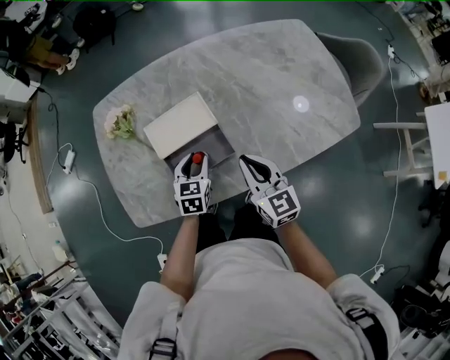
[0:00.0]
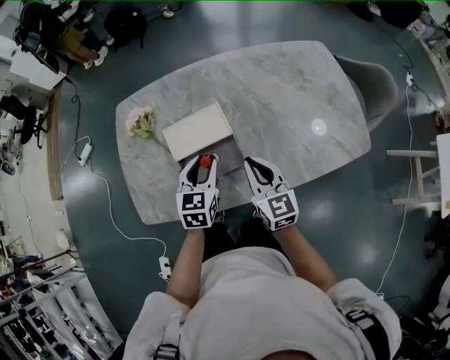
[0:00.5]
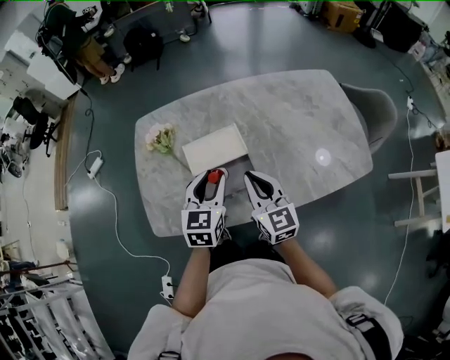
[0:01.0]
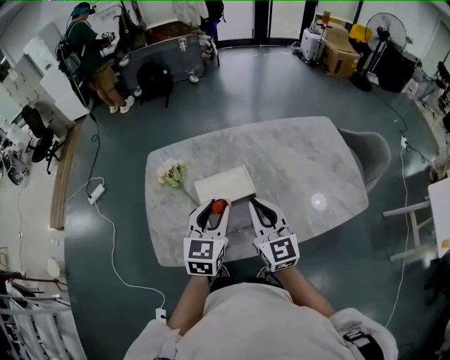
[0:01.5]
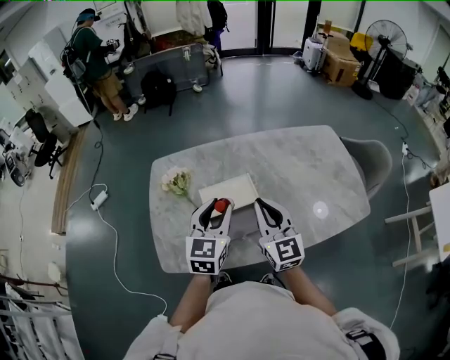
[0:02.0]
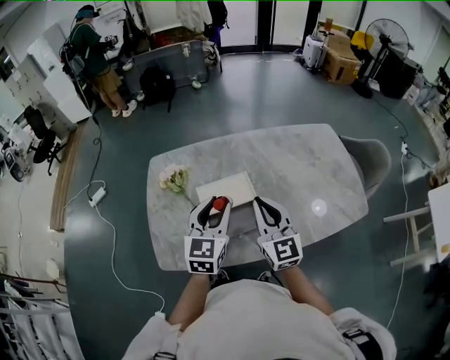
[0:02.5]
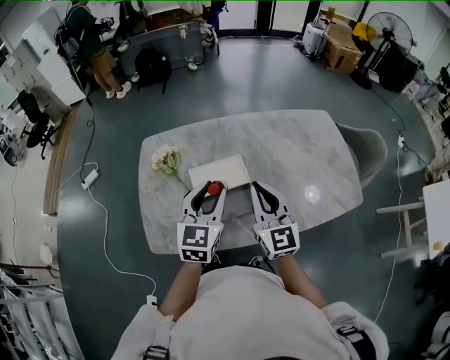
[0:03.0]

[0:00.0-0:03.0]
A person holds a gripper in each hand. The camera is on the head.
0:00.0 to 0:01.5: The right gripper is displaced upward and to the left by approximately 15 cm. The left gripper shifts some 25 cm upward, and swivels approximately 20 degrees.
0:01.5 to 0:03.0: There are only small adjustments of the grippers.

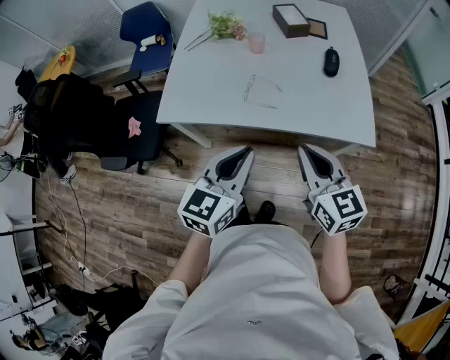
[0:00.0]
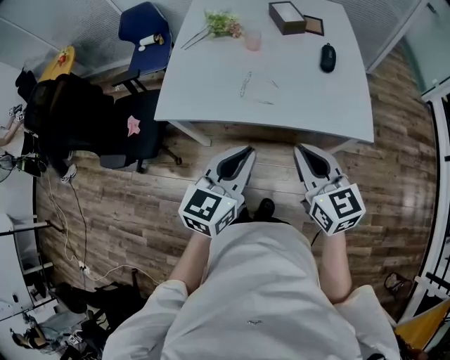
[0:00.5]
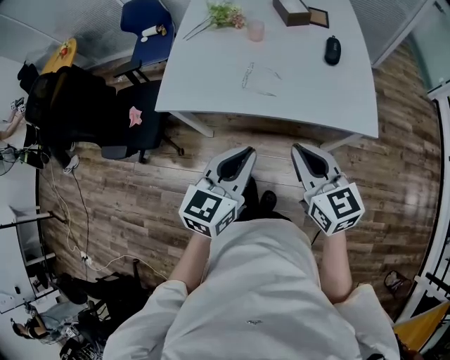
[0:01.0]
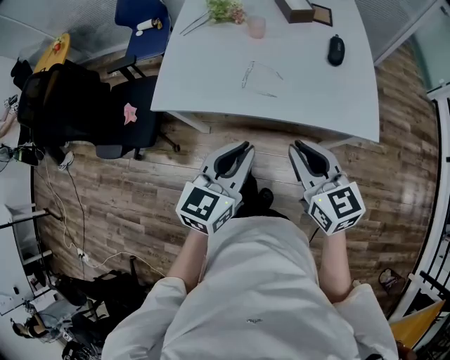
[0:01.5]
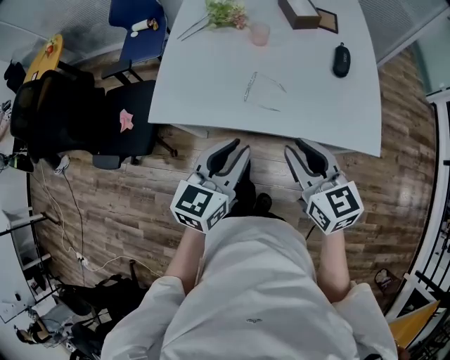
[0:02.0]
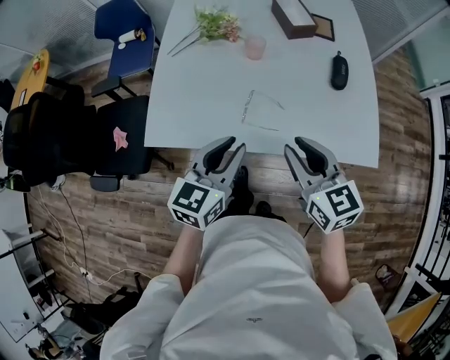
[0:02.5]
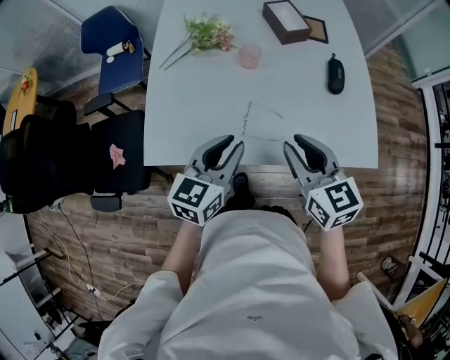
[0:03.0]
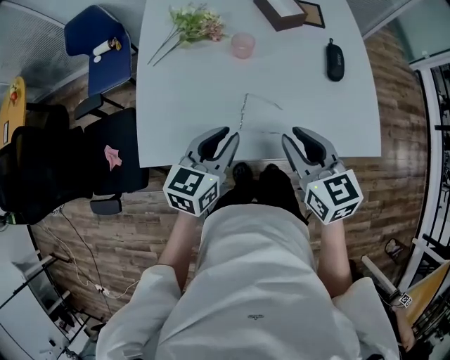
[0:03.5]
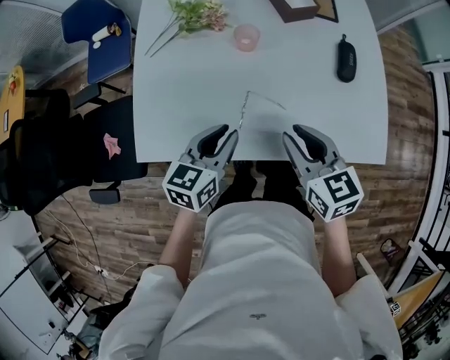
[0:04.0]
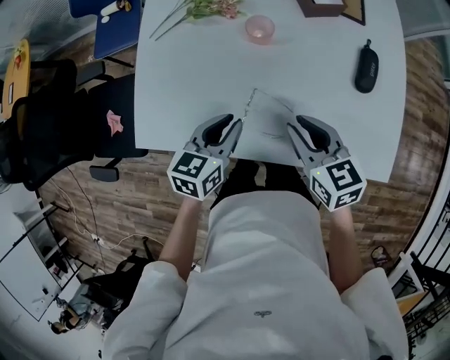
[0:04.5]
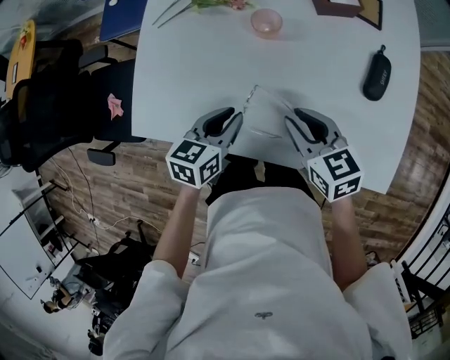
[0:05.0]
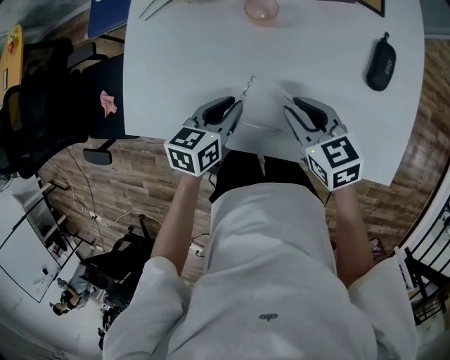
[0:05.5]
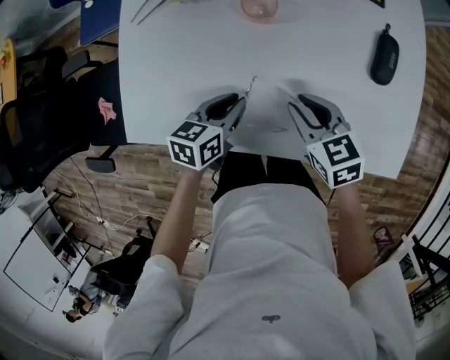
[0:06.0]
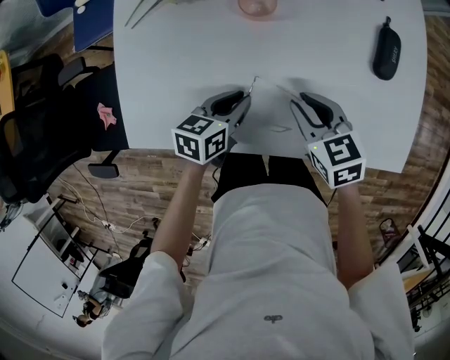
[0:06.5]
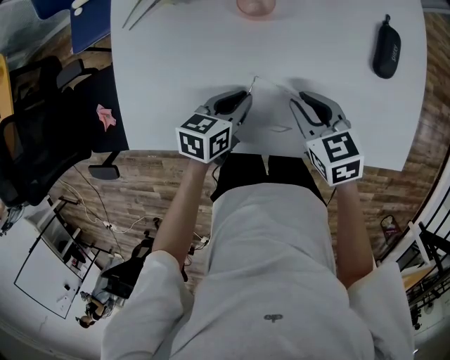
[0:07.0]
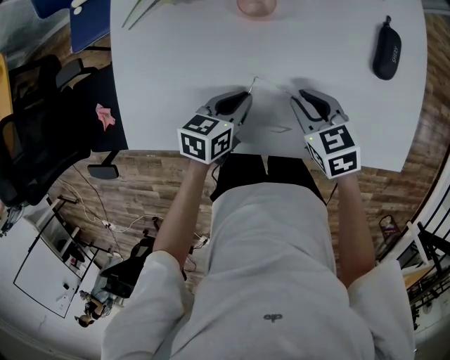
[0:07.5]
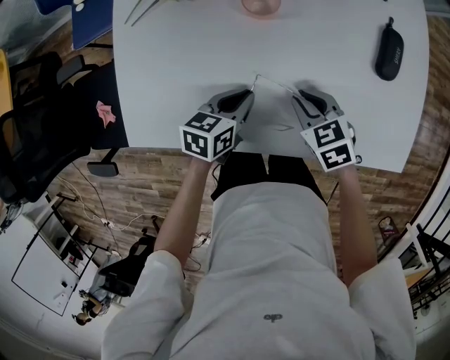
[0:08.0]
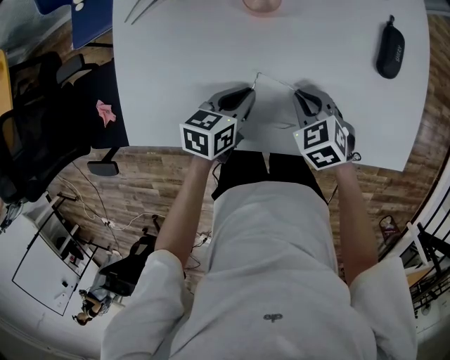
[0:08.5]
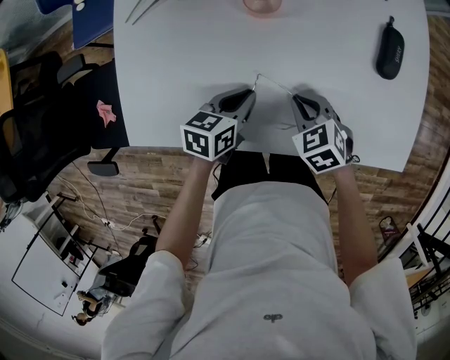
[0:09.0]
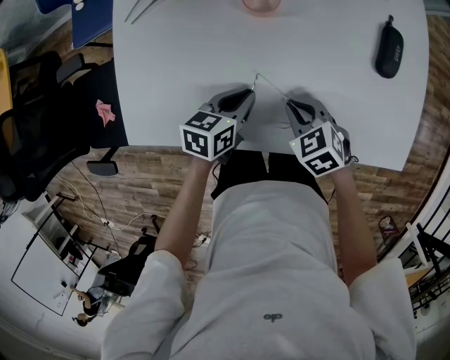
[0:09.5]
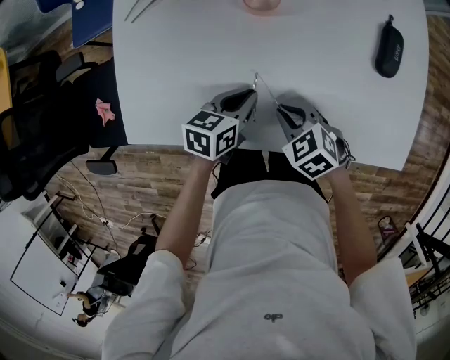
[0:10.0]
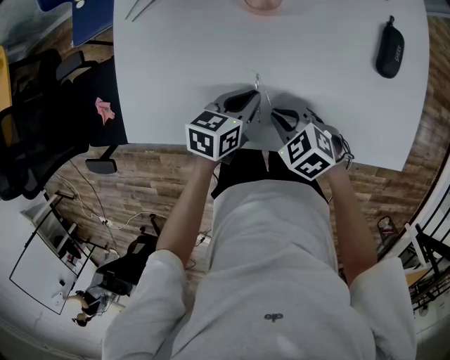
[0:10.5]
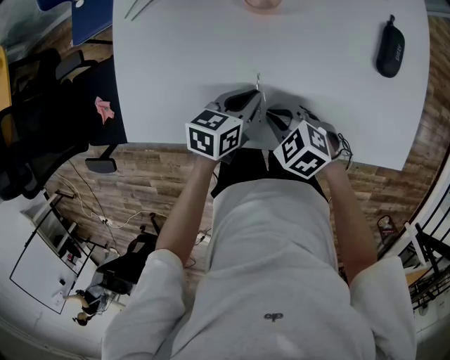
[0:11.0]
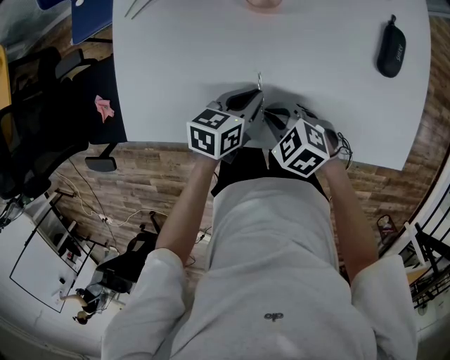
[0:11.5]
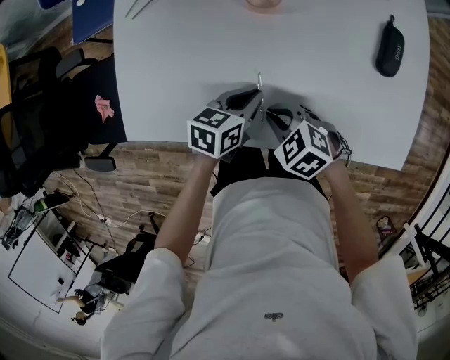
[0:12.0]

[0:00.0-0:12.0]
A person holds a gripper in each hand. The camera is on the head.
0:00.0 to 0:02.0: Both grippers move forward, approximately 5 cm. The right gripper opens its fingers.
0:02.0 to 0:04.0: The left gripper heads forward and downward, covering approximately 20 cm, while the right gripper travels forward by roughly 15 cm.
0:04.0 to 0:06.0: Both grippers move downward and forward, some 15 cm.
0:06.0 to 0:08.0: The right gripper moves downward, some 5 cm.
0:08.0 to 0:10.0: The right gripper heads backward, covering roughly 5 cm.
0:10.0 to 0:12.0: The grippers move only a little.

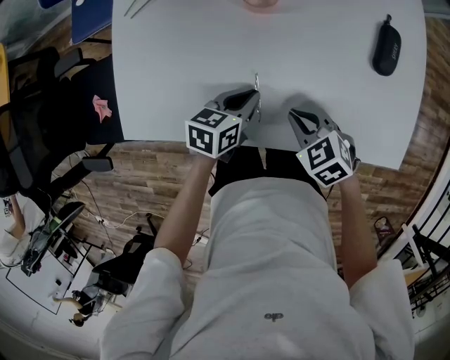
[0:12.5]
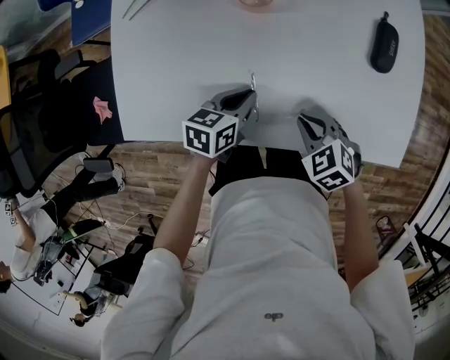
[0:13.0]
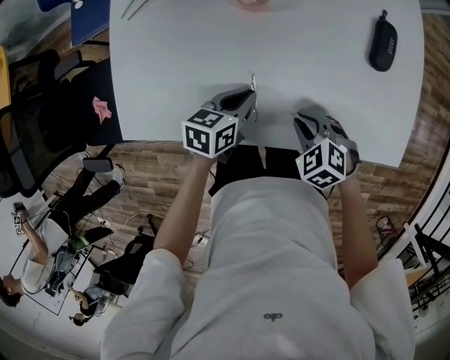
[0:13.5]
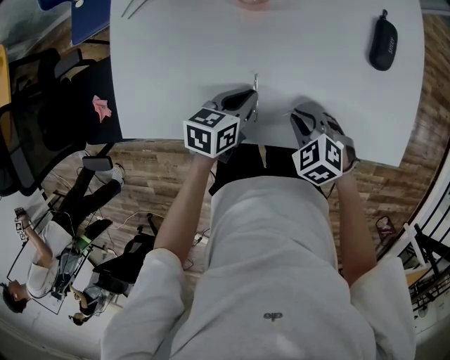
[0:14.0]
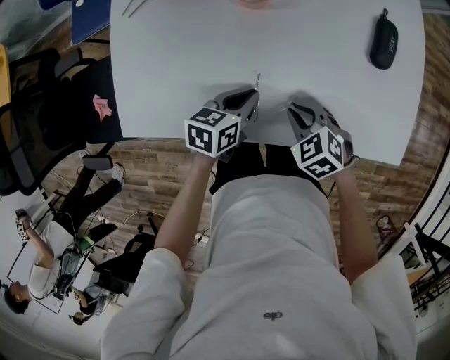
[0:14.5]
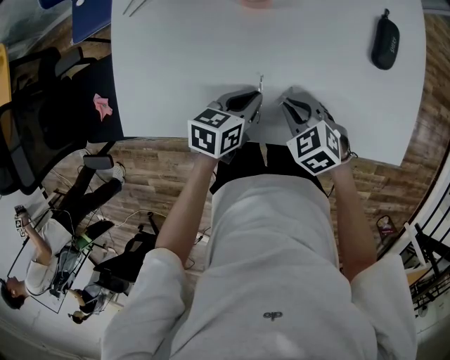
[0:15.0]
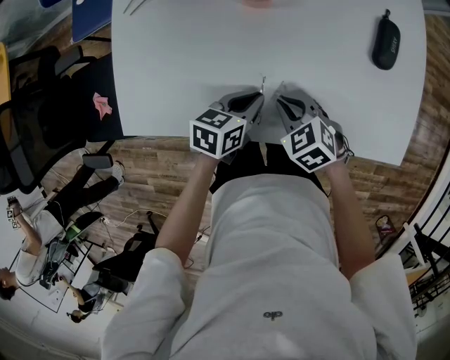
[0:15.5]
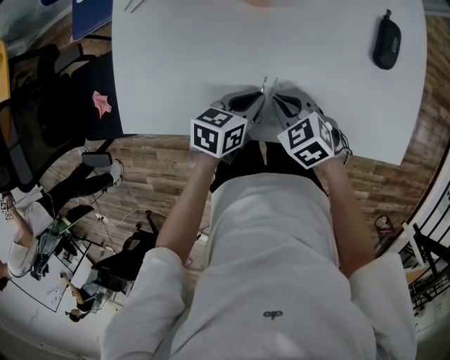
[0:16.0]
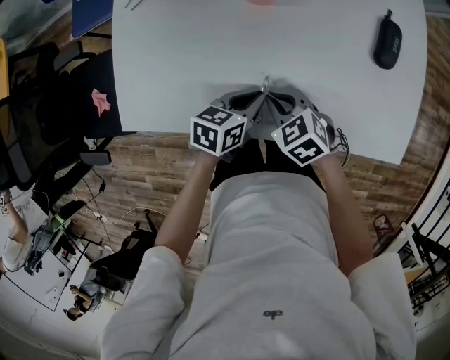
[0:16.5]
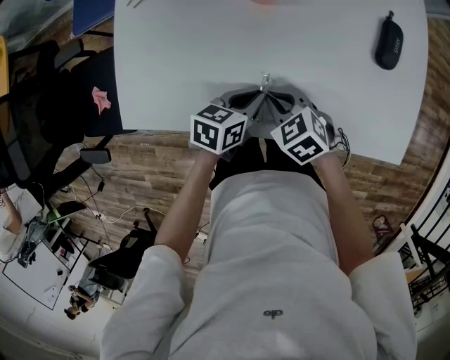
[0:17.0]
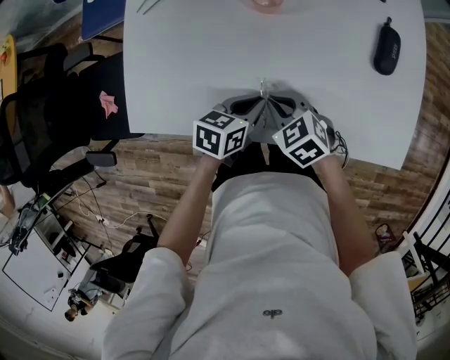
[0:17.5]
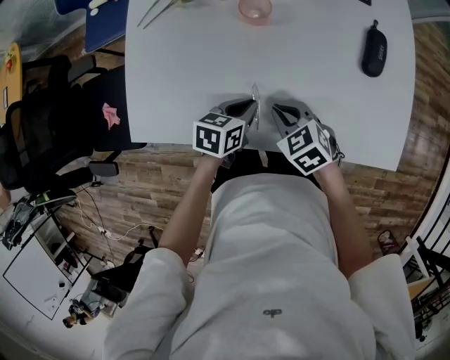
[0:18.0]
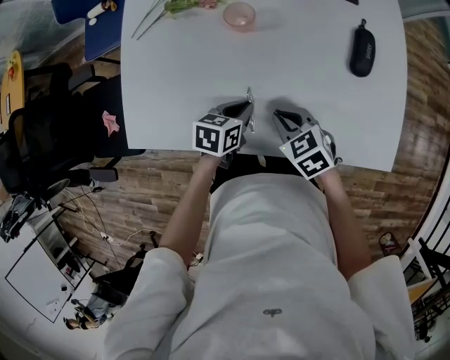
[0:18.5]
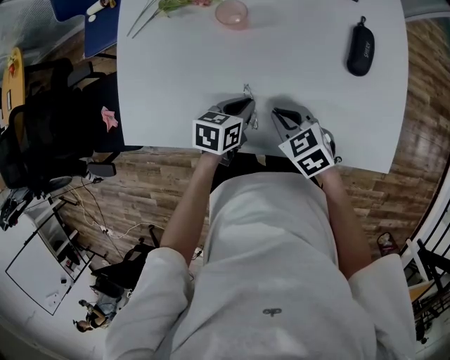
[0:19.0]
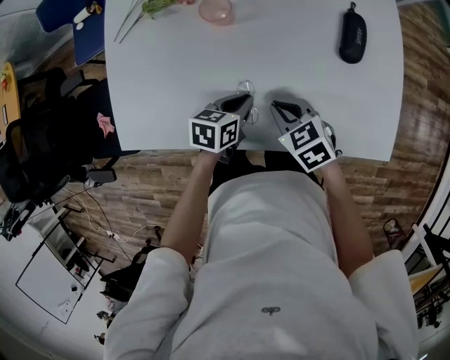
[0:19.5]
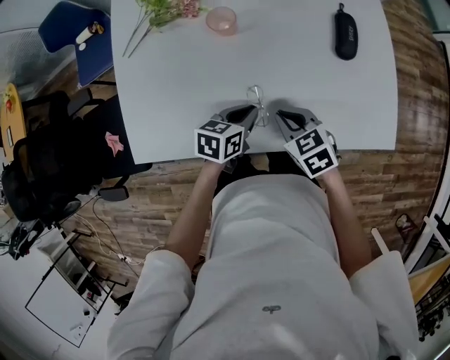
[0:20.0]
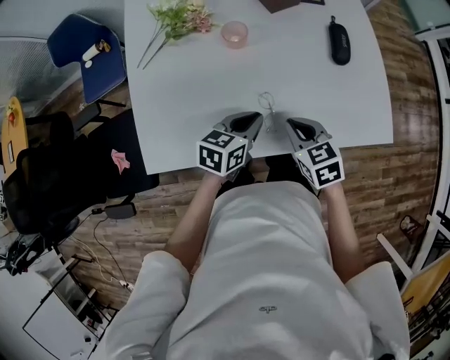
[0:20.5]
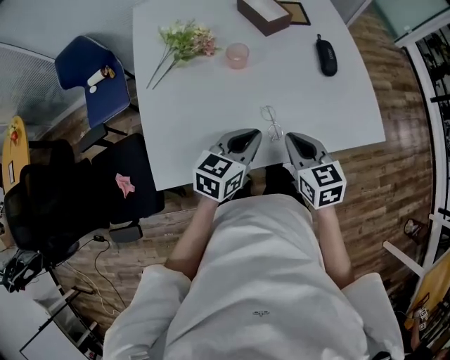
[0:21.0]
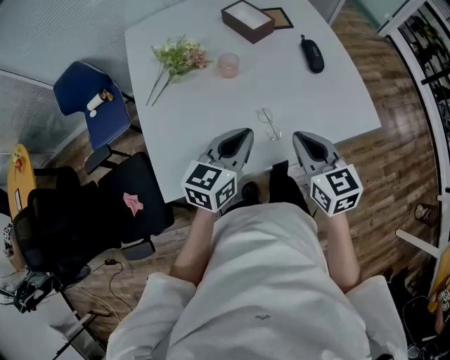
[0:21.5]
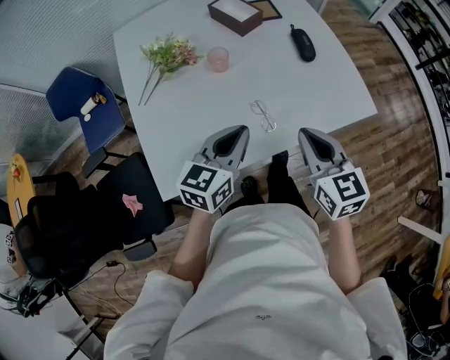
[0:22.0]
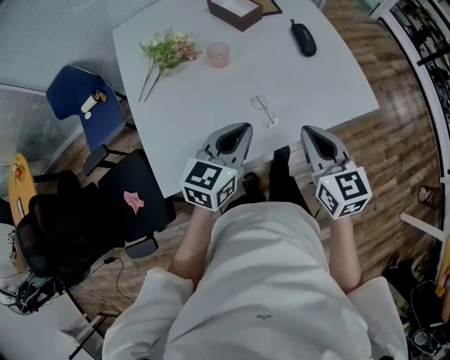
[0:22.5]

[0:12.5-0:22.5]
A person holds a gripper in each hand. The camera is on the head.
0:12.5 to 0:14.5: The grippers stay close to where they were, moving slightly.
0:14.5 to 0:16.5: The right gripper shifts approximately 5 cm to the left.
0:16.5 to 0:18.5: The right gripper is displaced to the right by some 5 cm.
0:18.5 to 0:20.5: The right gripper is displaced upward by about 5 cm, and swivels about 20 degrees. Meanwhile the left gripper goes roughly 10 cm upward, and changes its angle by approximately 20 degrees.
0:20.5 to 0:22.5: The grippers both shift upward and backward by some 15 cm. The right gripper turns by roughly 30 degrees. The left gripper rotates some 20 degrees.

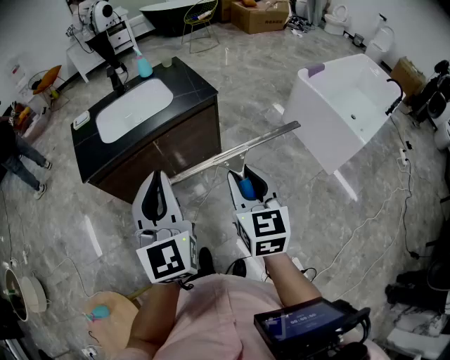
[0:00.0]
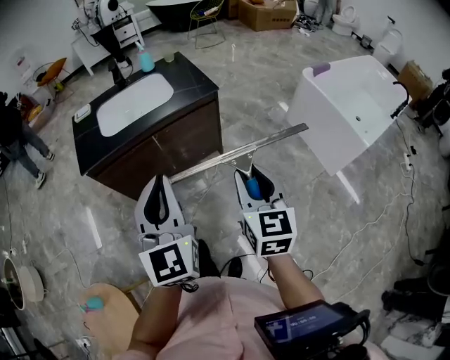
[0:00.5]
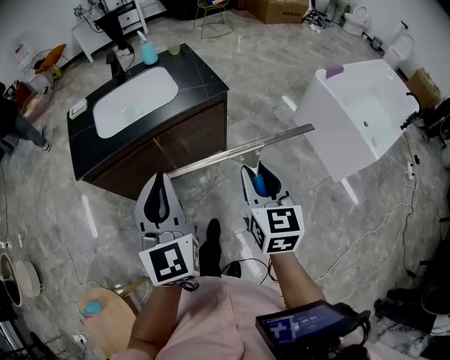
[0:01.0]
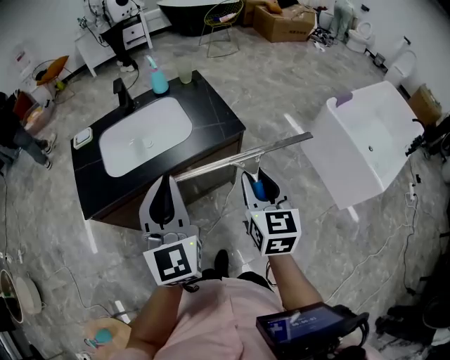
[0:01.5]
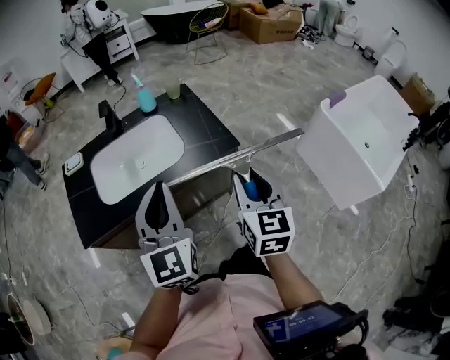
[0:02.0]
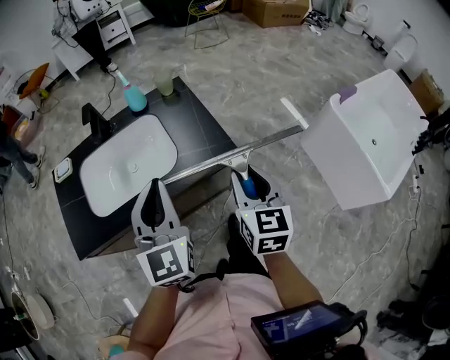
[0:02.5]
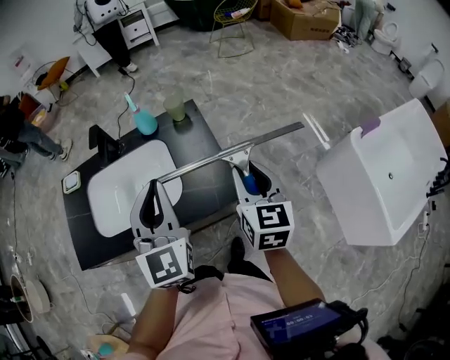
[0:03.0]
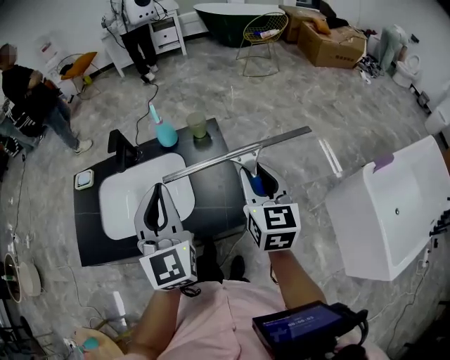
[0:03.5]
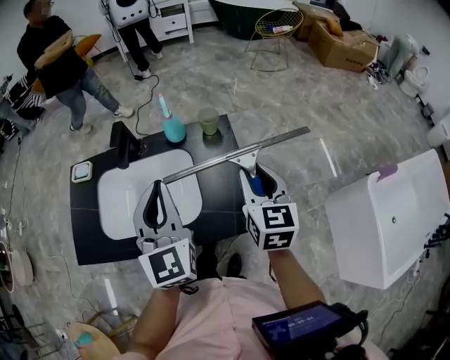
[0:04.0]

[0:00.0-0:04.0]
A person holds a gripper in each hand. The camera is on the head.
0:00.0 to 0:02.0: The two grippers go about 30 cm forward.
0:02.0 to 0:04.0: Both grippers move forward, approximately 30 cm.
